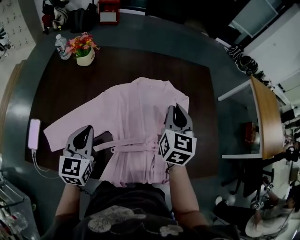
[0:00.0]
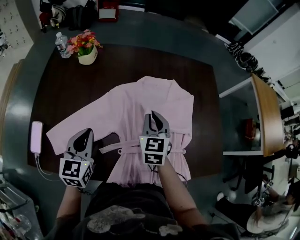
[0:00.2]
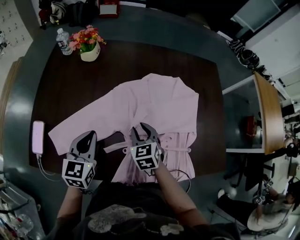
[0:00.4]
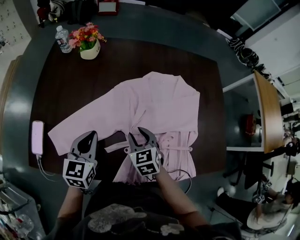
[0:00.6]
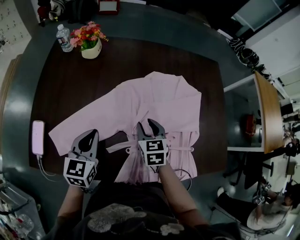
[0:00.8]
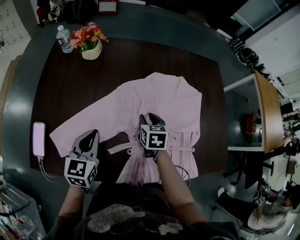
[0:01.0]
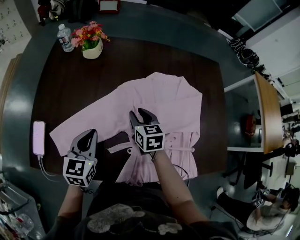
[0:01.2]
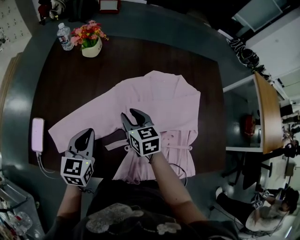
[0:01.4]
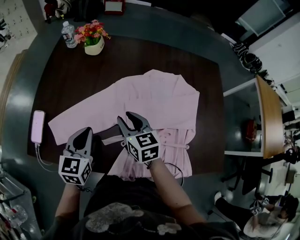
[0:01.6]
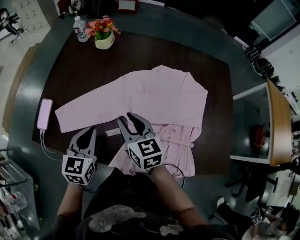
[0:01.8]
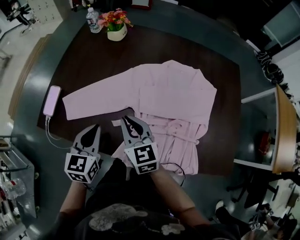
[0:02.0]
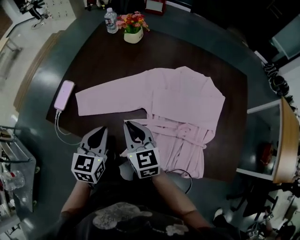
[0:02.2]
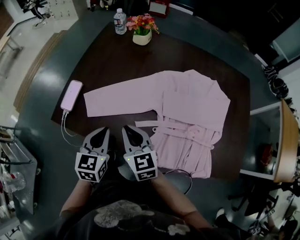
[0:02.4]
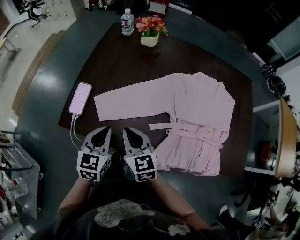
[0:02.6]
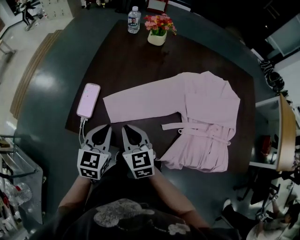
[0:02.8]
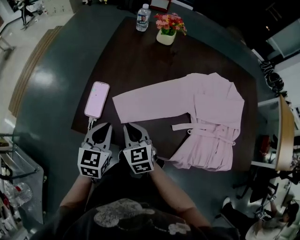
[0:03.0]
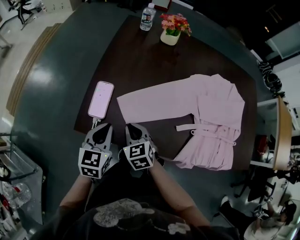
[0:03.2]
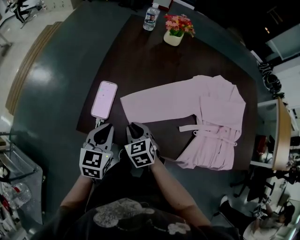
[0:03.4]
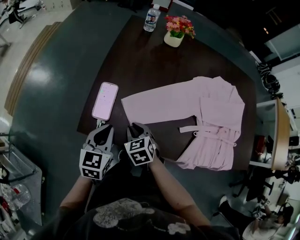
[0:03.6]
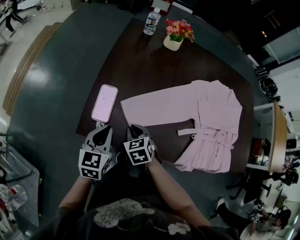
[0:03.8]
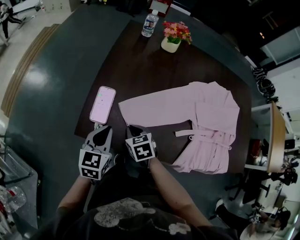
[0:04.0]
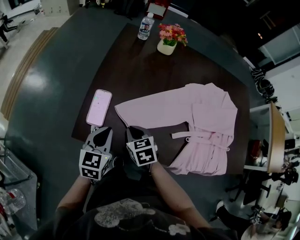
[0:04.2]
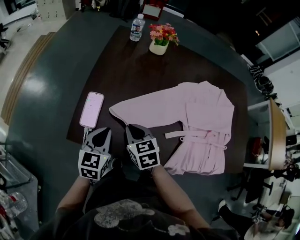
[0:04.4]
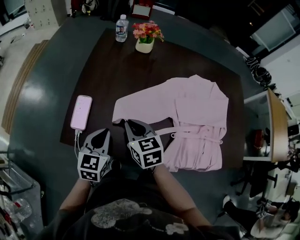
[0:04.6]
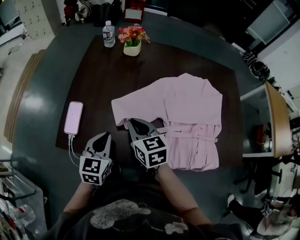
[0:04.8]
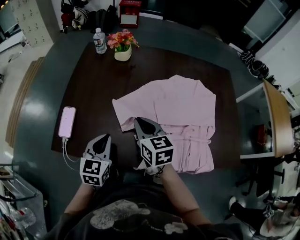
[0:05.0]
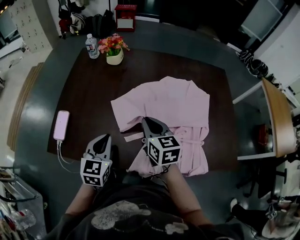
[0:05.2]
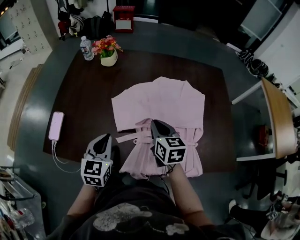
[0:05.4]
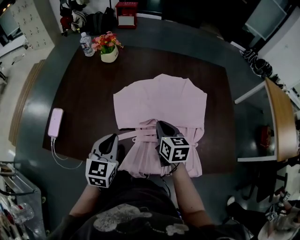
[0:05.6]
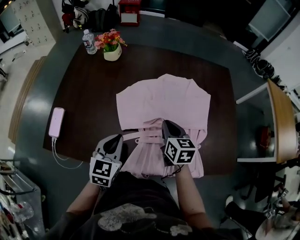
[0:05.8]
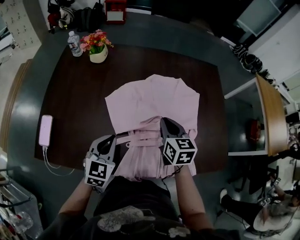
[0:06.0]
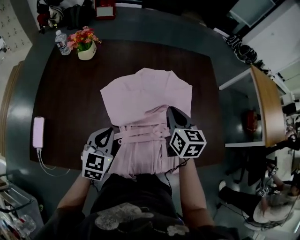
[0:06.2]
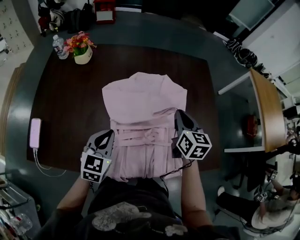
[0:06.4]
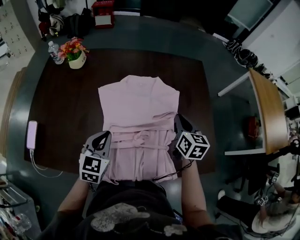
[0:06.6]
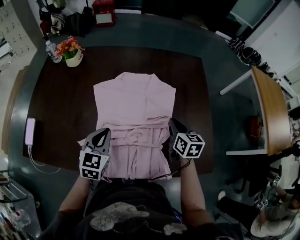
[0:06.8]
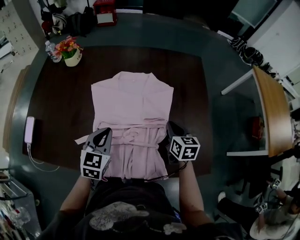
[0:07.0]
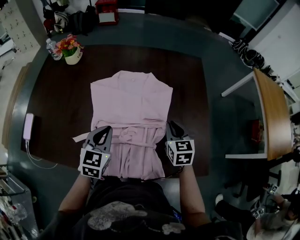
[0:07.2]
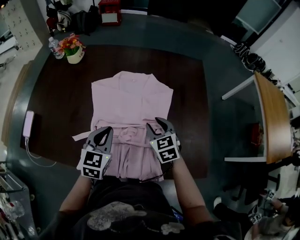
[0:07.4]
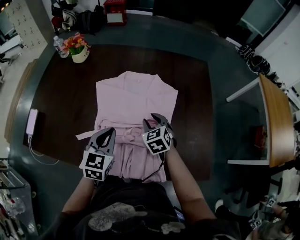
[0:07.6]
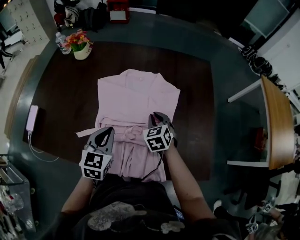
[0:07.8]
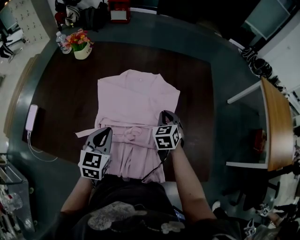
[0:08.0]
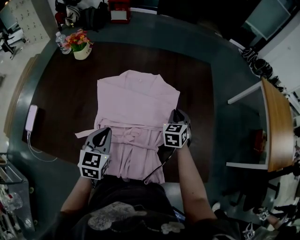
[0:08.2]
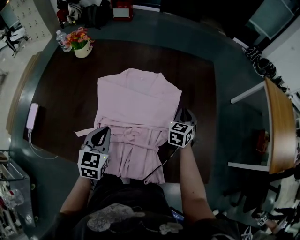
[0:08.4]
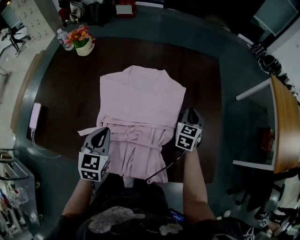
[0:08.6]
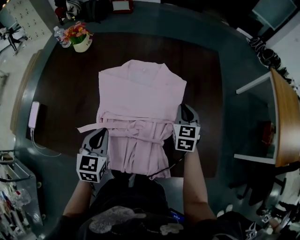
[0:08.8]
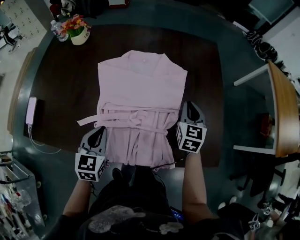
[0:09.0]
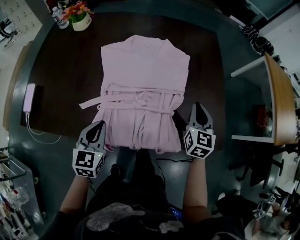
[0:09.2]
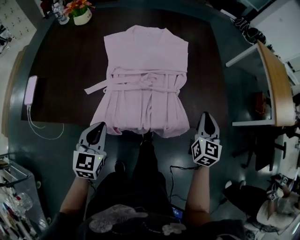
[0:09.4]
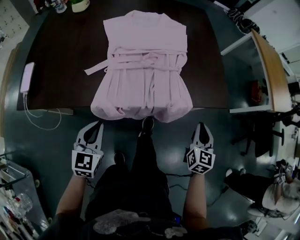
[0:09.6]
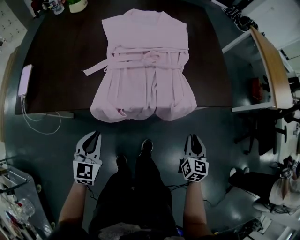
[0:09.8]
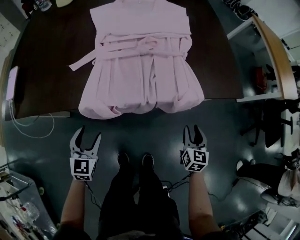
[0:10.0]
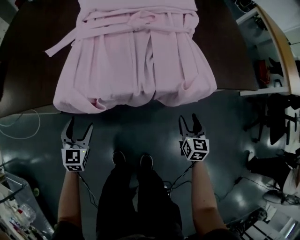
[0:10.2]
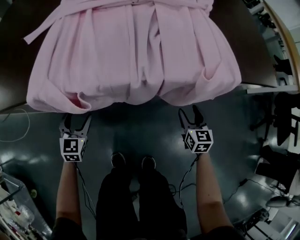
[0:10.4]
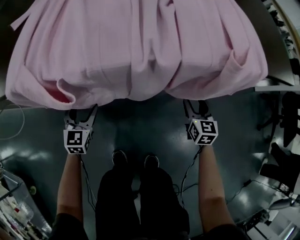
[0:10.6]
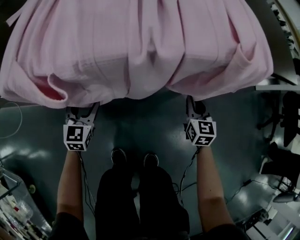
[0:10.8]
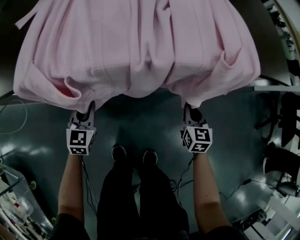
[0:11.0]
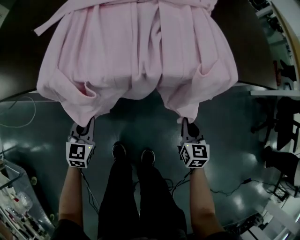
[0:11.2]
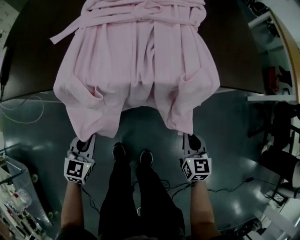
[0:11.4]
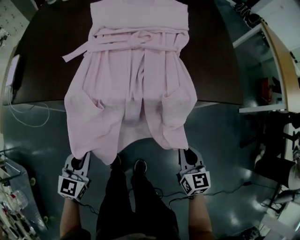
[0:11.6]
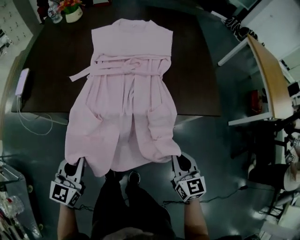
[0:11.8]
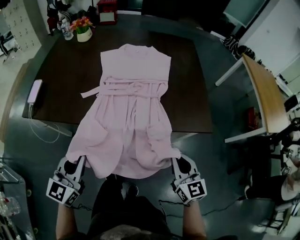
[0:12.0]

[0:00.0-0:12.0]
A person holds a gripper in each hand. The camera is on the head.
0:00.0 to 0:01.6: The right gripper moves left and right over roughly 20 cm, changing direction 2 times, changes its angle by roughly 40 degrees, and opens its fingers; the left gripper goes about 5 cm to the left.
0:01.6 to 0:03.0: Both grippers move to the left, roughly 30 cm. The right gripper closes up.
0:03.0 to 0:04.4: The right gripper travels downward and back again, about 5 cm each way.
0:04.4 to 0:06.0: The grippers both shift to the right by some 35 cm. The right gripper changes its angle by some 30 degrees.
0:06.0 to 0:07.6: The right gripper is displaced to the right and downward by roughly 15 cm, rotates roughly 30 degrees, and opens up, while the left gripper shifts about 20 cm to the right.
0:07.6 to 0:09.0: The right gripper heads to the right, covering about 15 cm, rotates roughly 30 degrees, and closes up; the left gripper shifts some 5 cm backward.
0:09.0 to 0:10.4: The grippers both shift downward and backward by approximately 50 cm. The left gripper opens its fingers, while the right gripper opens.
0:10.4 to 0:12.0: Both grippers travel together upward, roughly 50 cm. The left gripper swivels approximately 30 degrees, and closes its fingers. Meanwhile the right gripper swivels approximately 30 degrees, and closes up.

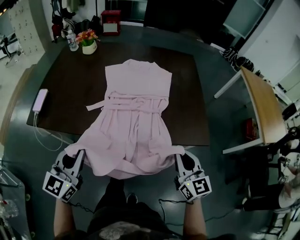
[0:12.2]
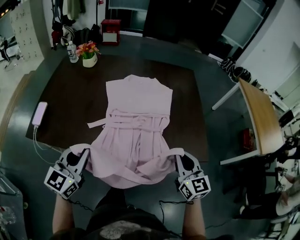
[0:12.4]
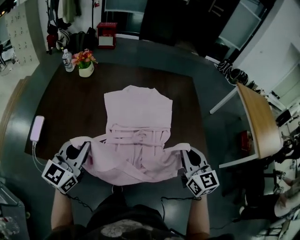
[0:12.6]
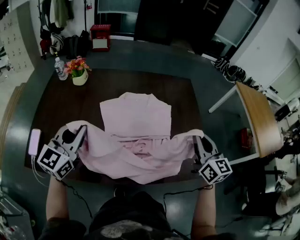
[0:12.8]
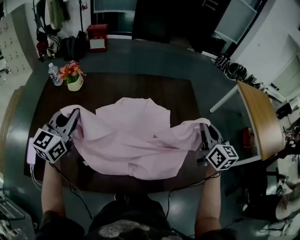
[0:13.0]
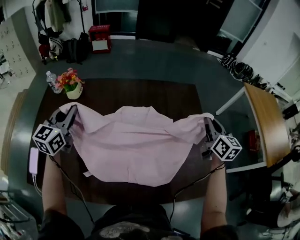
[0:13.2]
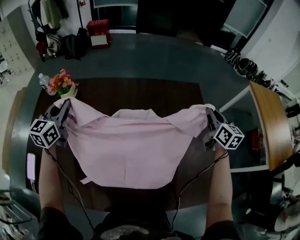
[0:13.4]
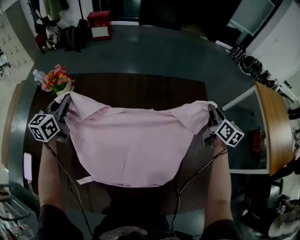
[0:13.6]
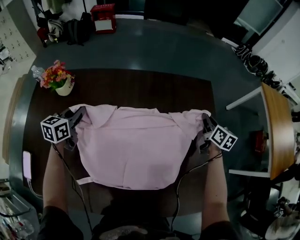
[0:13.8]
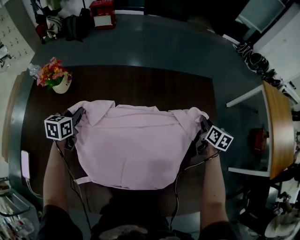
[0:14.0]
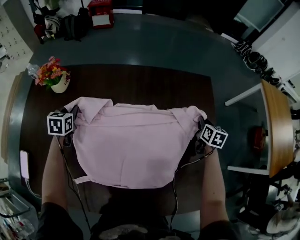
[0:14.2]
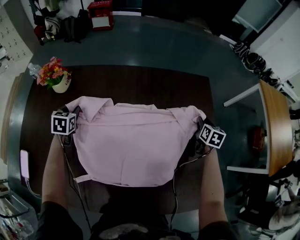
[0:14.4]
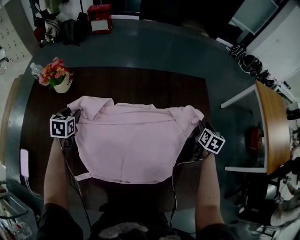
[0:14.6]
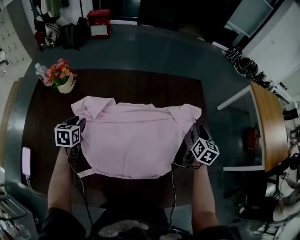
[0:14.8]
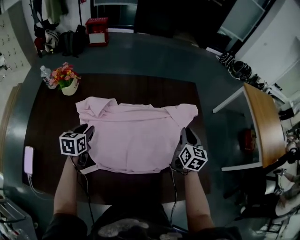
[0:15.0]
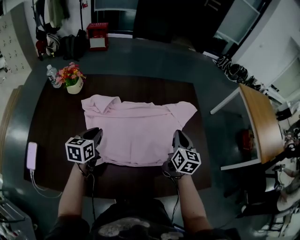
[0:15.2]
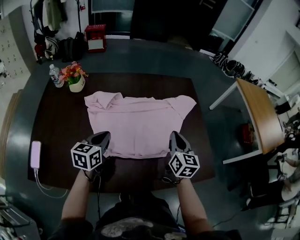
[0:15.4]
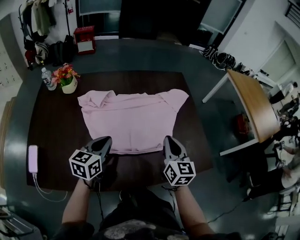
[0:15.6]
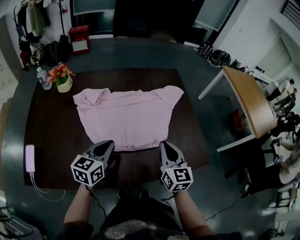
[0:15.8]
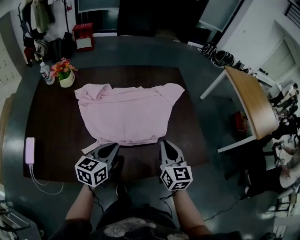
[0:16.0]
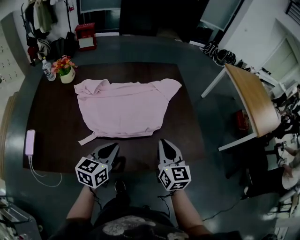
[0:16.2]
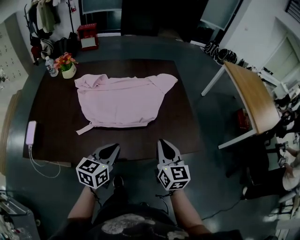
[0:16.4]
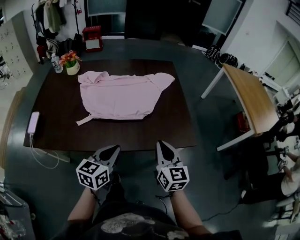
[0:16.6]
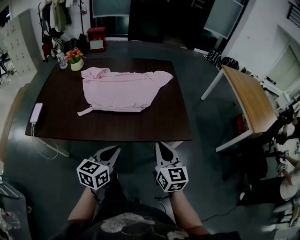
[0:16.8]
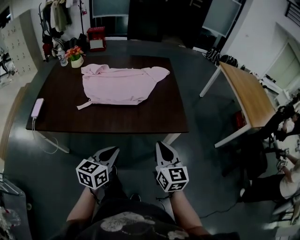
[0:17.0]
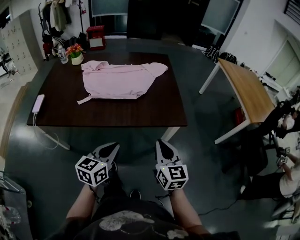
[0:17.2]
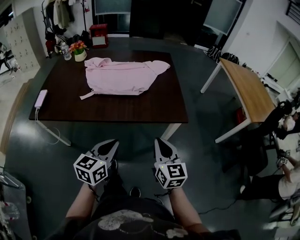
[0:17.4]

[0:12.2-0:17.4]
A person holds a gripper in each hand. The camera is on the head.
0:12.2 to 0:14.0: The two grippers travel together, forward, some 60 cm. The right gripper rotates roughly 40 degrees. Meanwhile the left gripper angles its fingers downward, by approximately 30 degrees.
0:14.0 to 0:15.6: The left gripper shifts some 30 cm backward and to the right, changes its angle by some 20 degrees, and opens, then closes once more. The right gripper travels backward and to the left by about 40 cm, rotates about 30 degrees, and opens, then closes once more.
0:15.6 to 0:17.4: Both grippers move backward and to the right, roughly 40 cm.

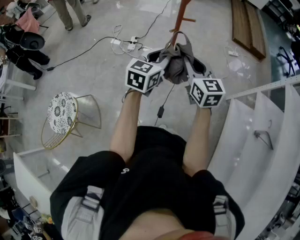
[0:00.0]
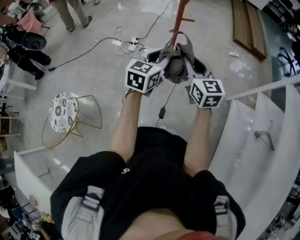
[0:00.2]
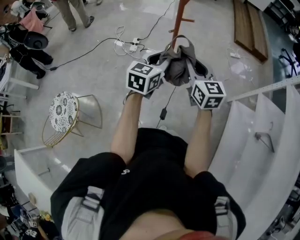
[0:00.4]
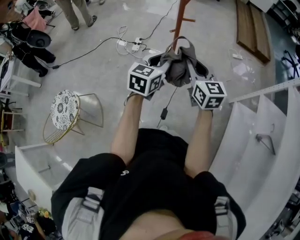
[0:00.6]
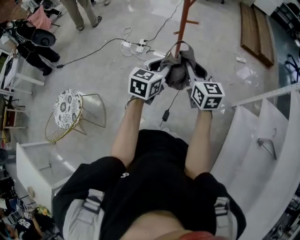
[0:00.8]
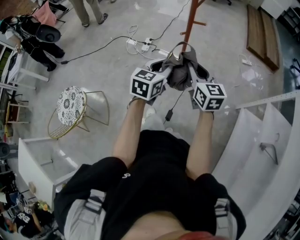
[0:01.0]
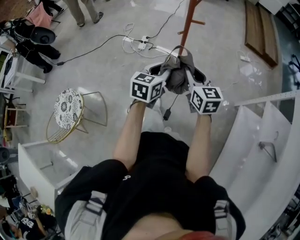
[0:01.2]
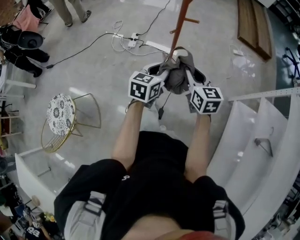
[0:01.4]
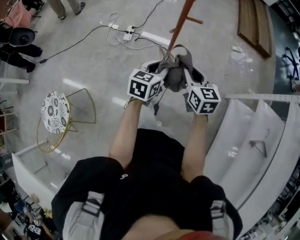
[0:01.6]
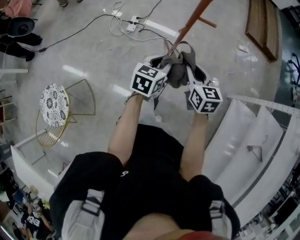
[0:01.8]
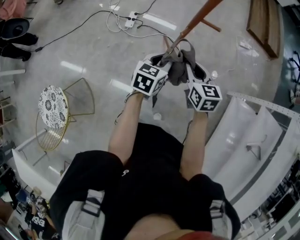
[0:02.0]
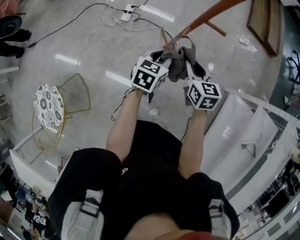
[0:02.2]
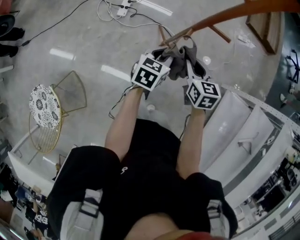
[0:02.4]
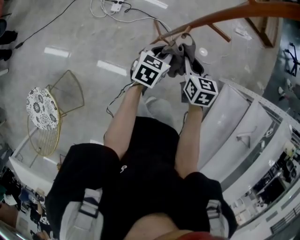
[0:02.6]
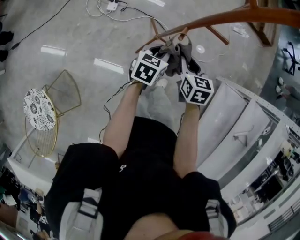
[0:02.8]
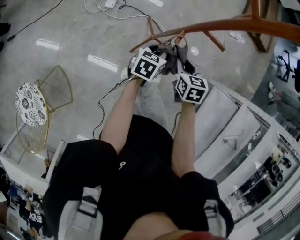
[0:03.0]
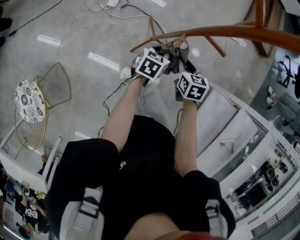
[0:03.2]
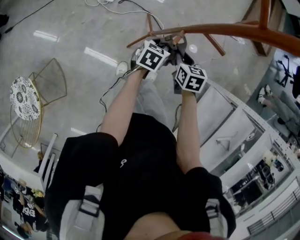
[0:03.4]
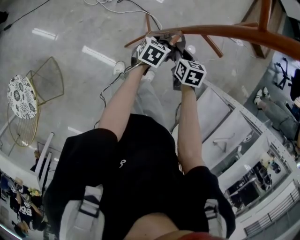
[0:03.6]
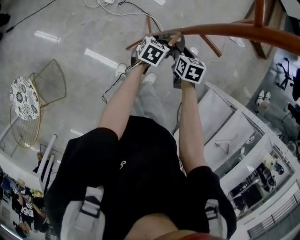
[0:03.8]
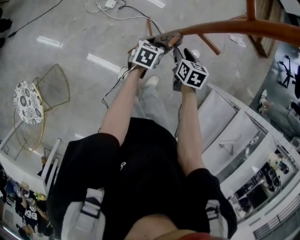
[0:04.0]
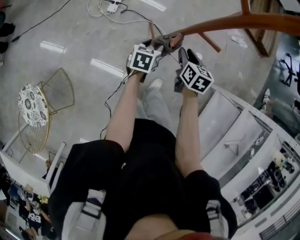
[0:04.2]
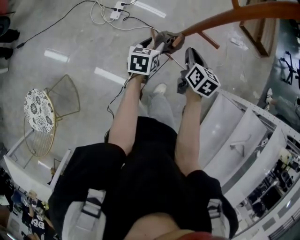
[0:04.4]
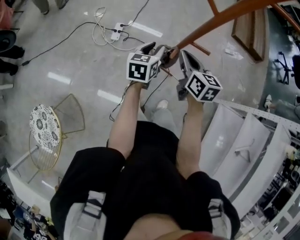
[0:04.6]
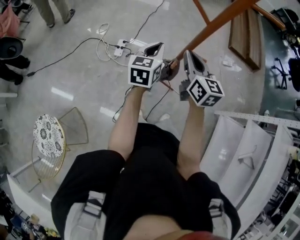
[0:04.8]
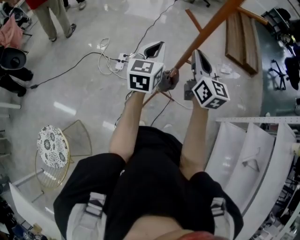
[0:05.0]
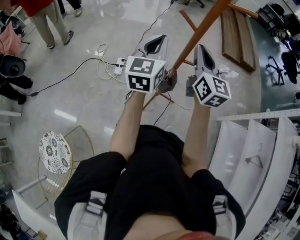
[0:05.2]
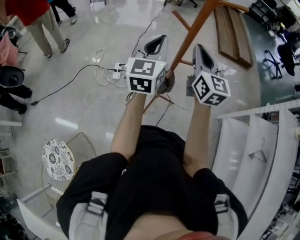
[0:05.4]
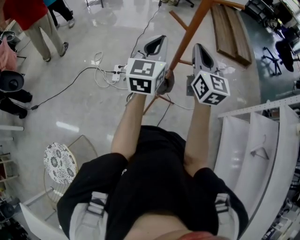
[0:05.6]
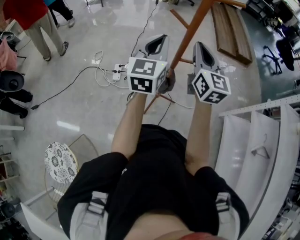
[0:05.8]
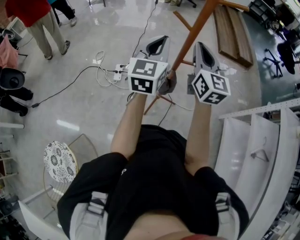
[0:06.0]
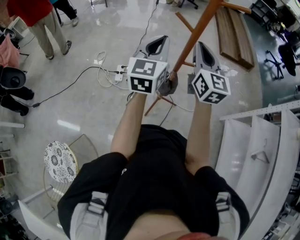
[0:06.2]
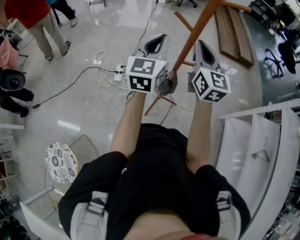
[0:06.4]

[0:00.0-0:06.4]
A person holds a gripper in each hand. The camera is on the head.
0:00.0 to 0:01.6: The grippers both shift downward and forward by approximately 15 cm.
0:01.6 to 0:03.2: Both grippers move forward and downward, approximately 25 cm. The right gripper swivels about 30 degrees.
0:03.2 to 0:04.8: The left gripper is displaced upward and to the left by some 25 cm, swivels approximately 30 degrees, and opens, then closes again, while the right gripper is displaced upward by approximately 25 cm, angles its fingers upward, by roughly 40 degrees, and opens and closes again.
0:04.8 to 0:06.4: Both grippers move upward, some 15 cm. The left gripper rotates some 20 degrees. The right gripper swivels approximately 20 degrees.
